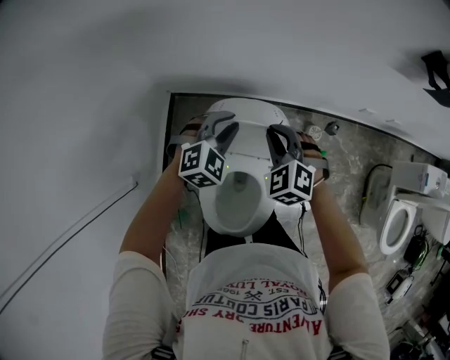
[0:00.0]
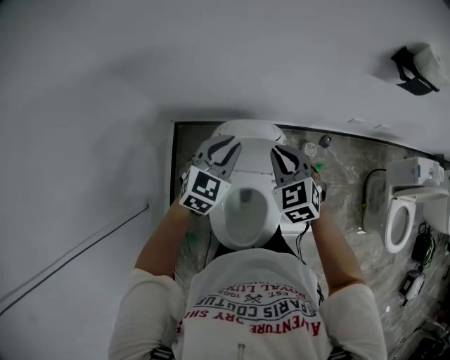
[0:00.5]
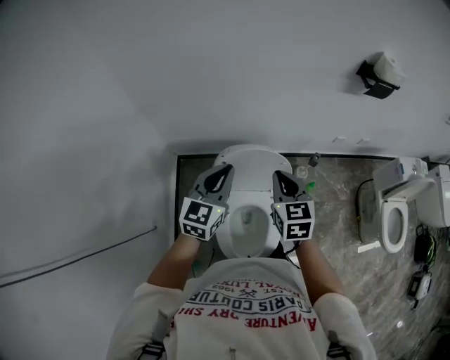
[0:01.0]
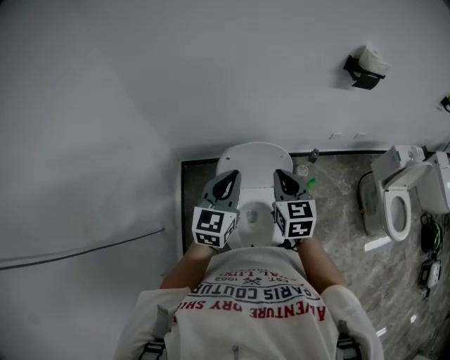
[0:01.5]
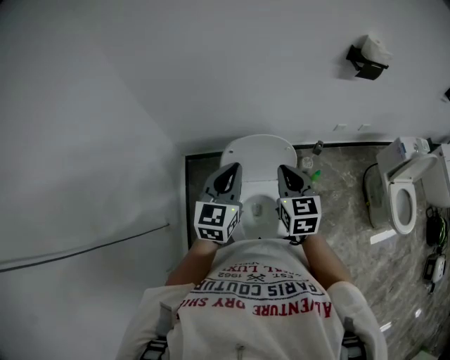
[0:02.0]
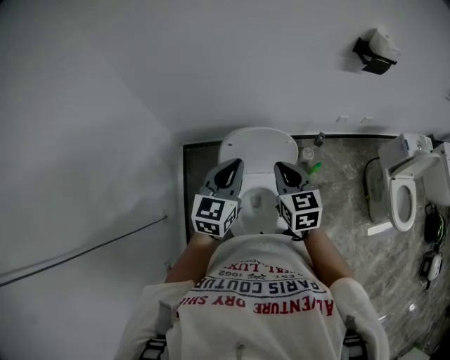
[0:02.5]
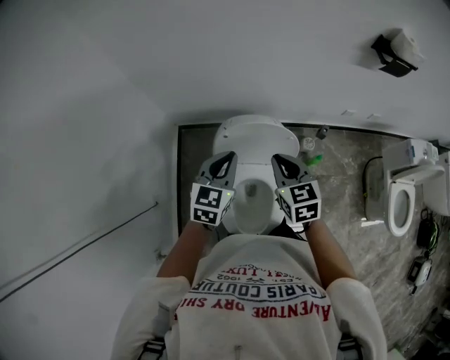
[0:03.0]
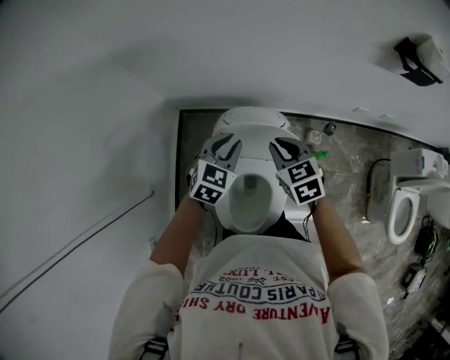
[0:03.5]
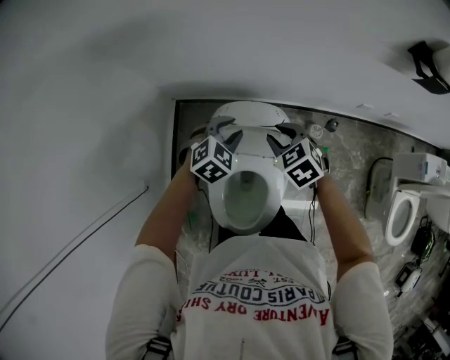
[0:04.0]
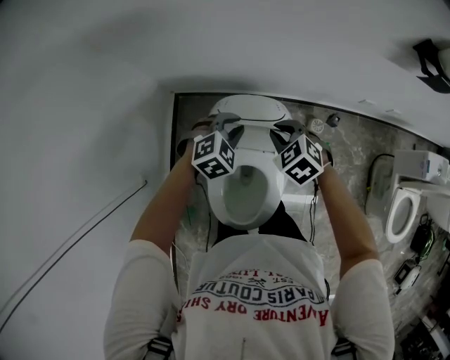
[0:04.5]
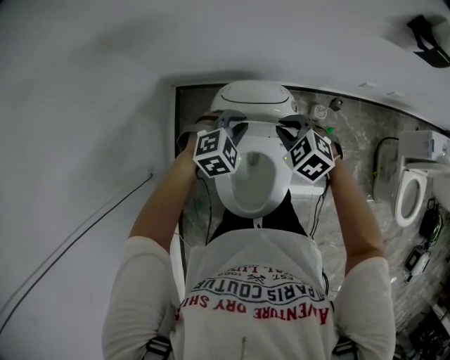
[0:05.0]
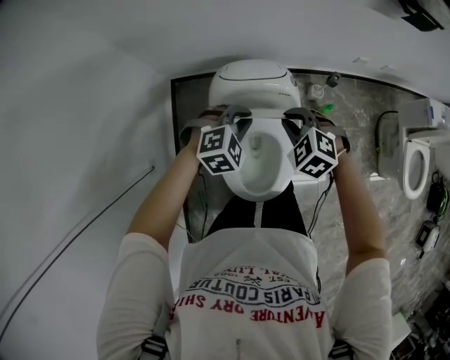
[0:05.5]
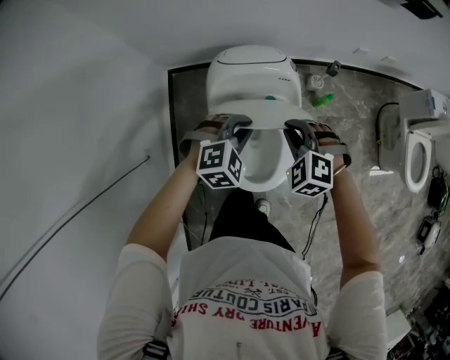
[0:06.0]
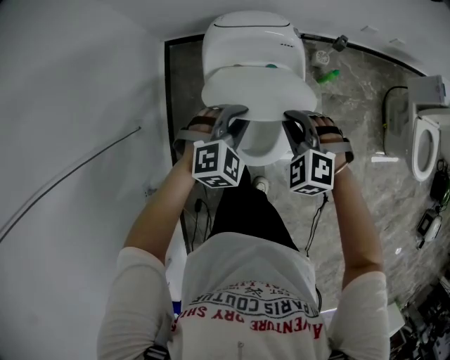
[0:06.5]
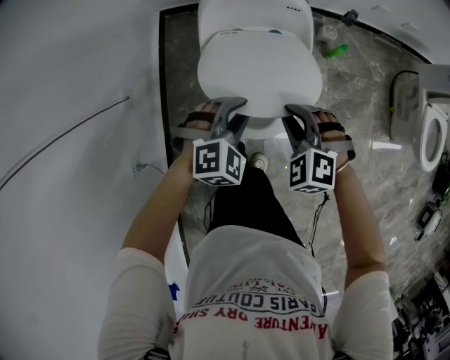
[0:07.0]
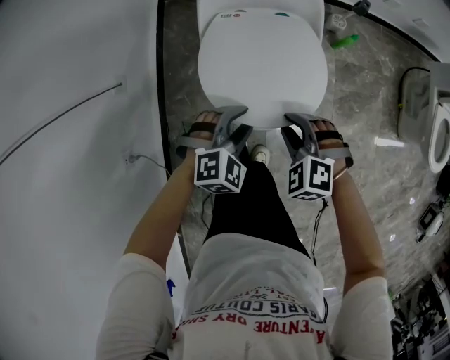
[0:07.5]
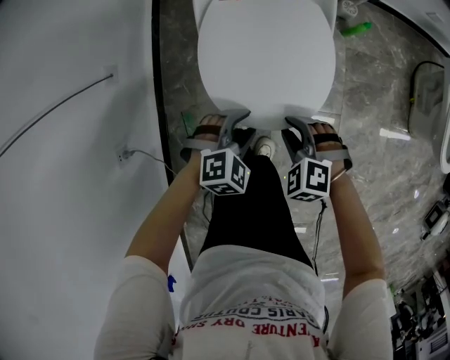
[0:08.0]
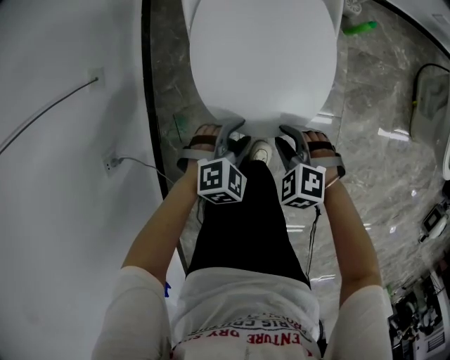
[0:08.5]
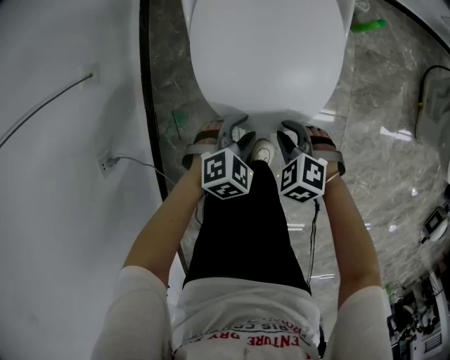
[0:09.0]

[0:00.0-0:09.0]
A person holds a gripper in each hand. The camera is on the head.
0:00.0 to 0:02.0: The right gripper moves backward and upward, roughly 25 cm, and twists about 50 degrees clockwise, seen from behind, while the left gripper shifts roughly 30 cm upward and backward, and tilts its fingers about 30 degrees upward.
0:02.0 to 0:04.5: The grippers both shift downward and forward by approximately 30 cm. The right gripper tilts its fingers some 30 degrees downward; the left gripper tips its fingers downward by approximately 40 degrees.
0:04.5 to 0:07.0: Both grippers travel together backward, roughly 35 cm. The right gripper turns by about 20 degrees.
0:07.0 to 0:09.0: The grippers both shift downward and backward by some 30 cm. The left gripper turns by approximately 30 degrees, and opens; the right gripper swivels roughly 20 degrees.

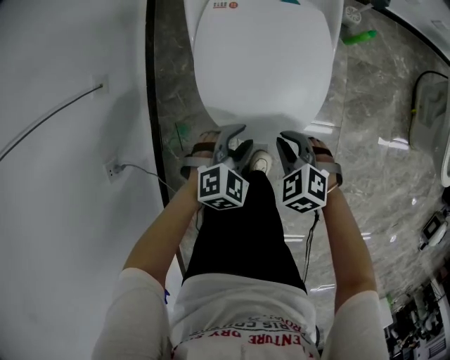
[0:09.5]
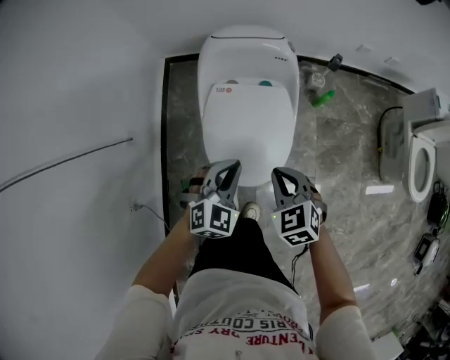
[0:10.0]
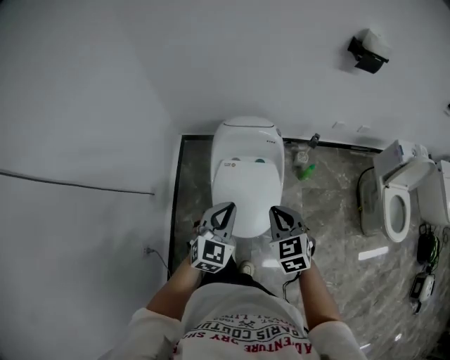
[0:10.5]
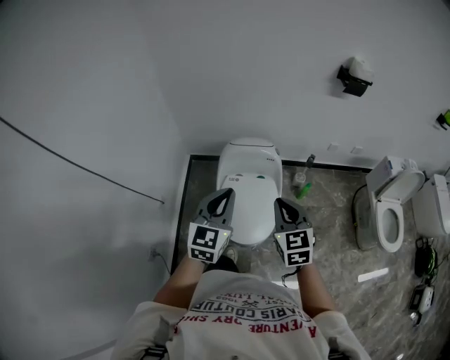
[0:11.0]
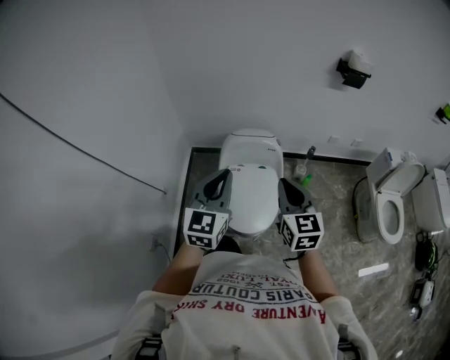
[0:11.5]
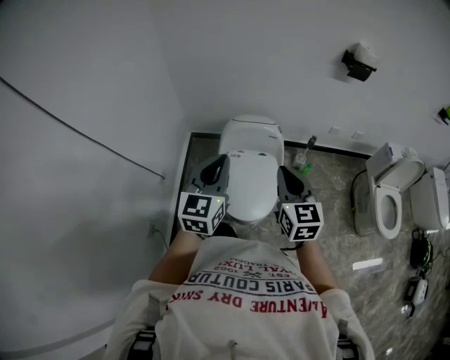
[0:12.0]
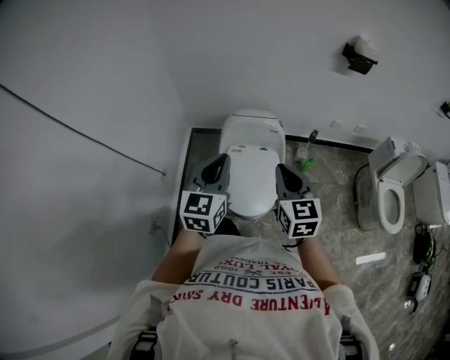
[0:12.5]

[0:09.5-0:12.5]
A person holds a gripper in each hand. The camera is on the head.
0:09.5 to 0:11.0: Both grippers move upward, roughly 60 cm. The left gripper tips its fingers upward by approximately 50 degrees, and closes; the right gripper tilts its fingers about 40 degrees upward.
0:11.0 to 0:12.5: The grippers move only a little.

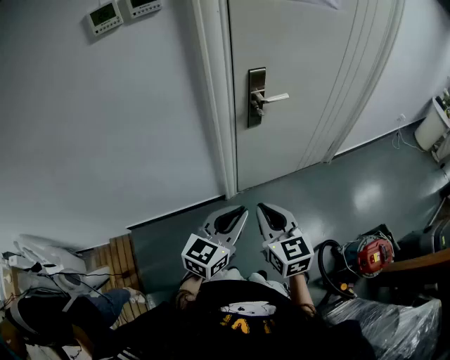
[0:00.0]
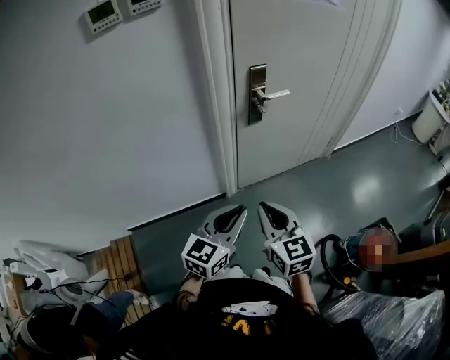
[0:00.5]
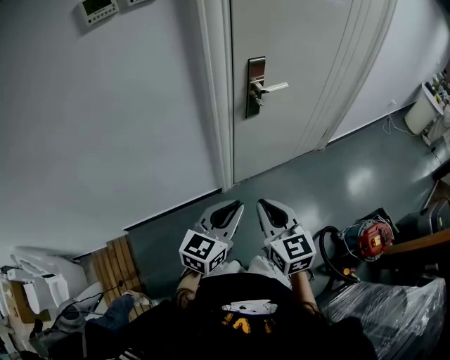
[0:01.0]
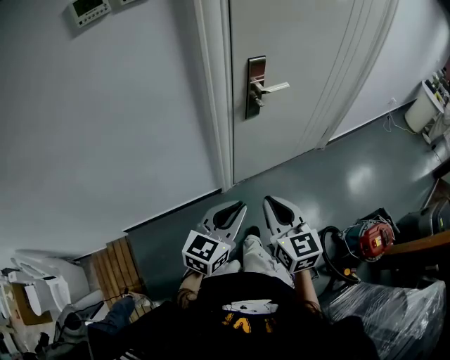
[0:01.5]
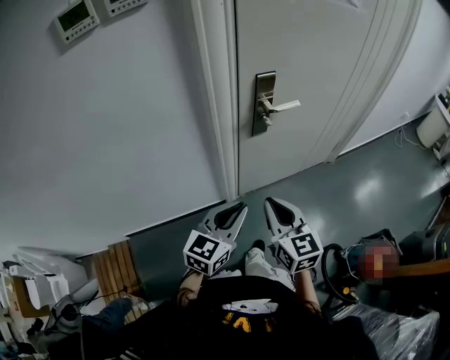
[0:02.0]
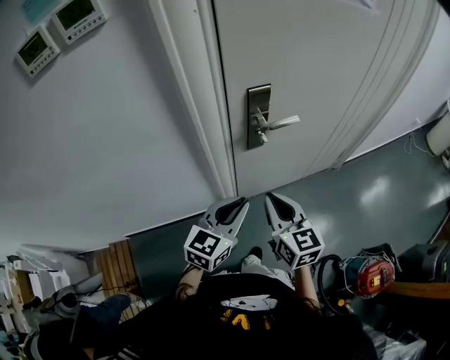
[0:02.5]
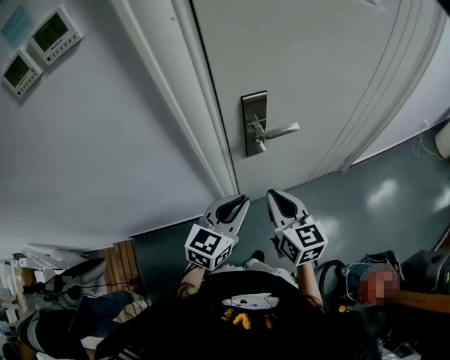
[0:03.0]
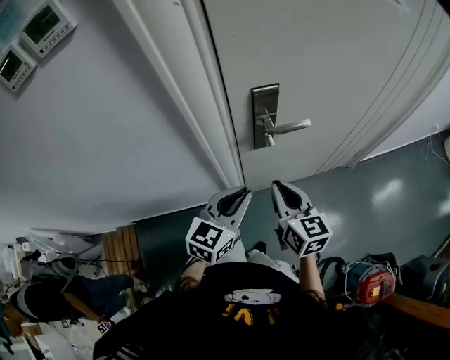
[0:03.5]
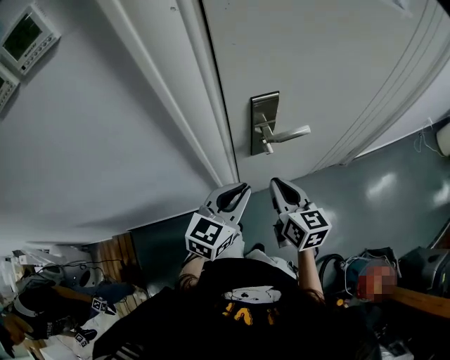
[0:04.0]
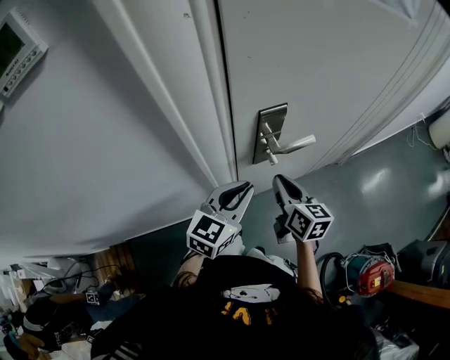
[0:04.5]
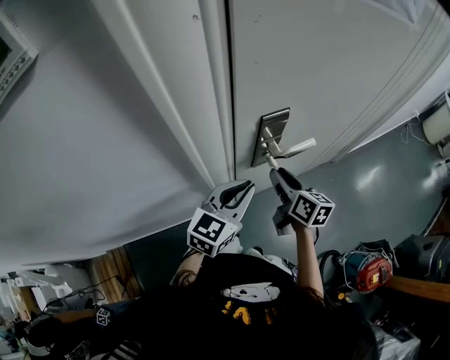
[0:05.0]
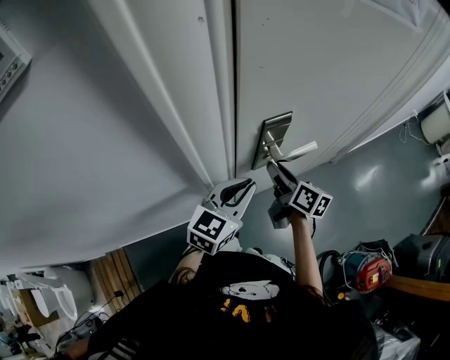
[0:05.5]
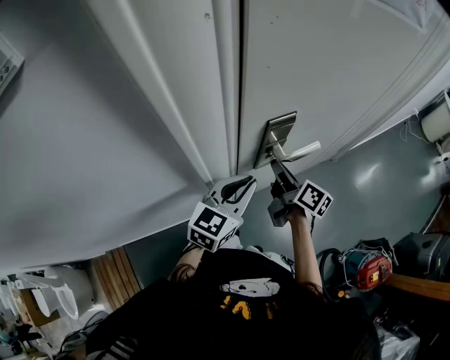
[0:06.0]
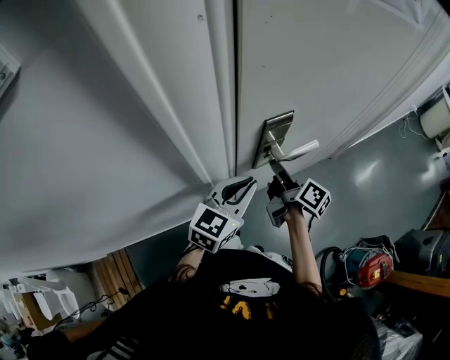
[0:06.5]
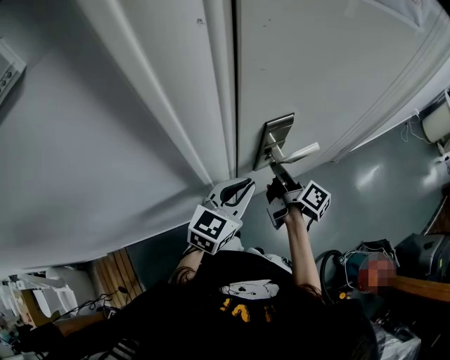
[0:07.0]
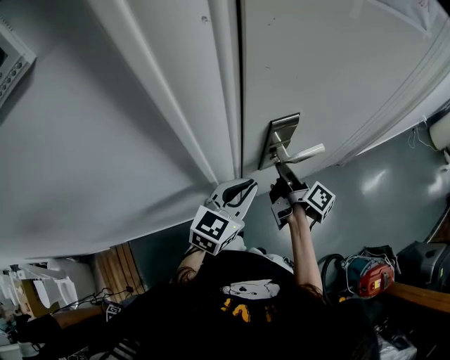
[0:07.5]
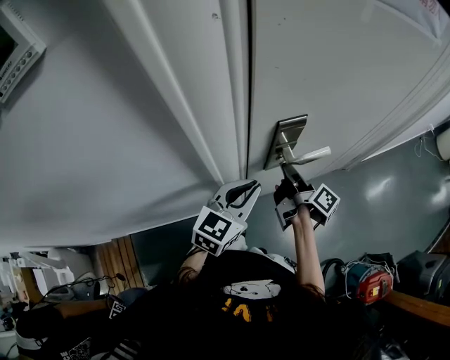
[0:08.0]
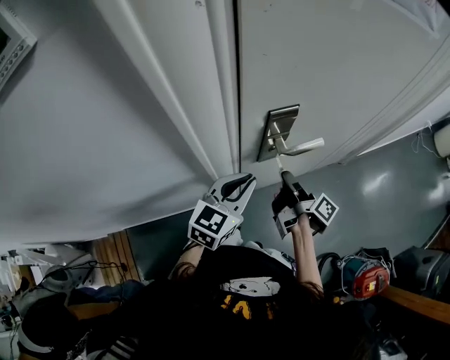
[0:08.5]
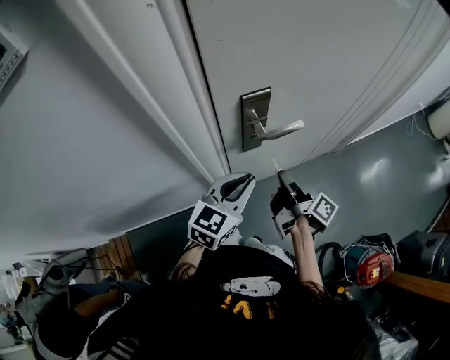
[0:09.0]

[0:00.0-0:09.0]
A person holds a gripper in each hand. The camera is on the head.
0:00.0 to 0:02.0: The two grippers go about 10 cm forward.
0:02.0 to 0:04.5: Both grippers move forward, some 25 cm. The right gripper turns by approximately 20 degrees.
0:04.5 to 0:07.0: The right gripper moves forward, approximately 5 cm, rotates around the line of its fingers by about 50 degrees, clockwise from behind, and opens, then closes again.
0:07.0 to 0:09.0: The left gripper travels to the right by some 5 cm; the right gripper travels backward and to the right by about 10 cm.

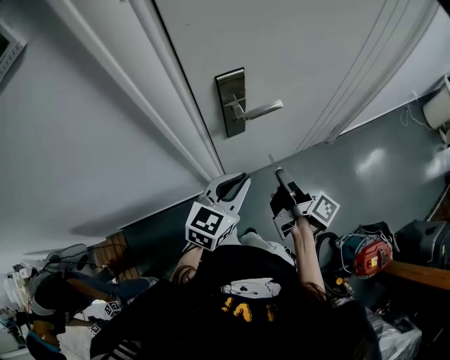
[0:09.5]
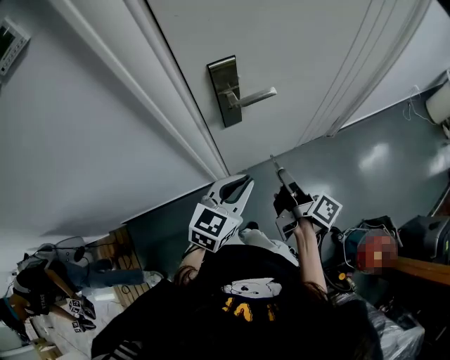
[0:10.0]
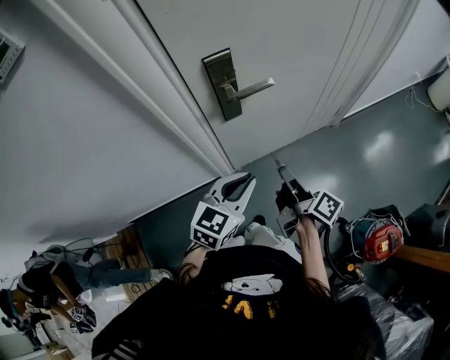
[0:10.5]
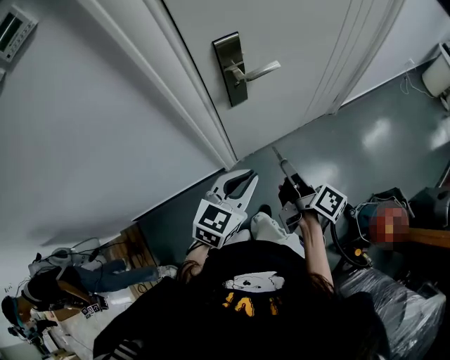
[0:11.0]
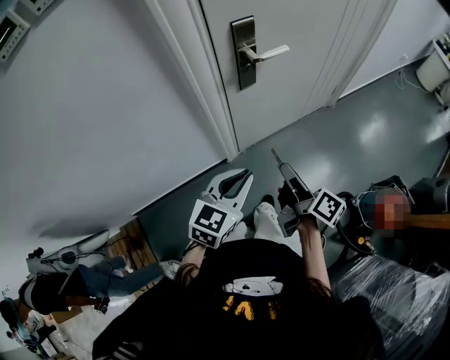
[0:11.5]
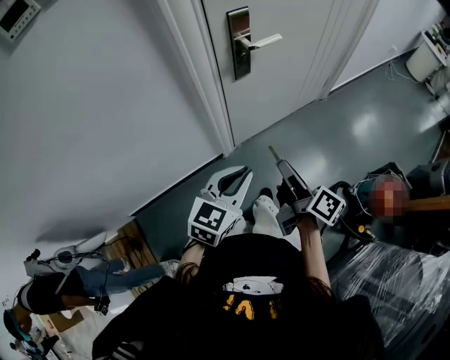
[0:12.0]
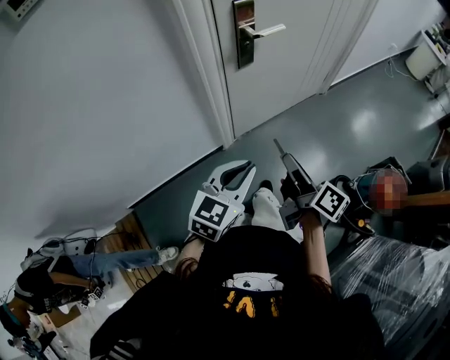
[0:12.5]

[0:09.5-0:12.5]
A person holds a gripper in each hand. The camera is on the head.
0:09.5 to 0:11.0: Both grippers move backward, some 10 cm.
0:11.0 to 0:12.5: The grippers both shift backward by some 15 cm.

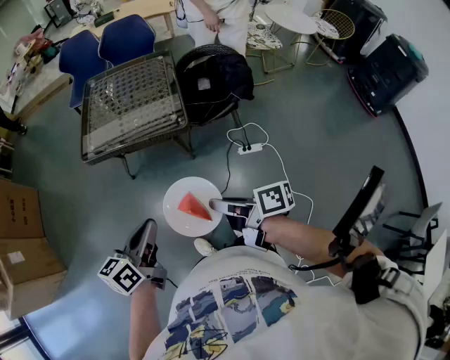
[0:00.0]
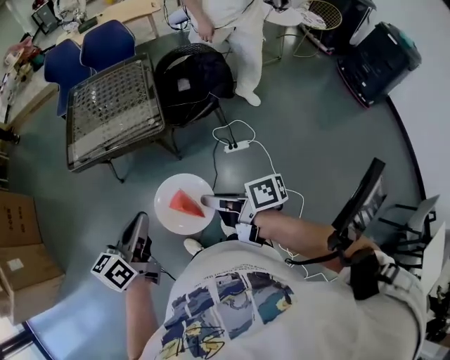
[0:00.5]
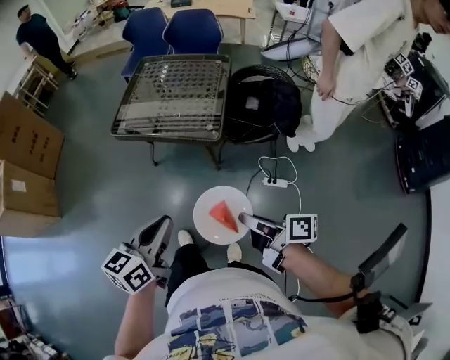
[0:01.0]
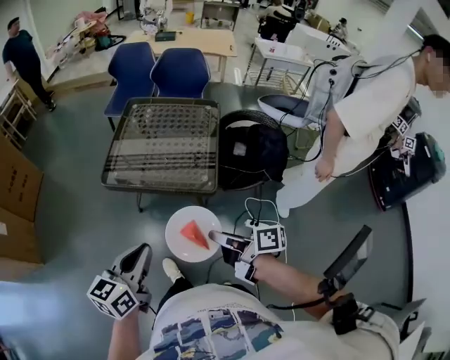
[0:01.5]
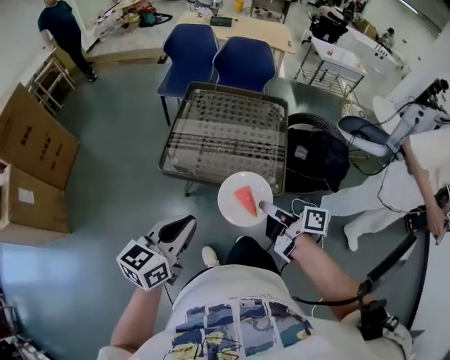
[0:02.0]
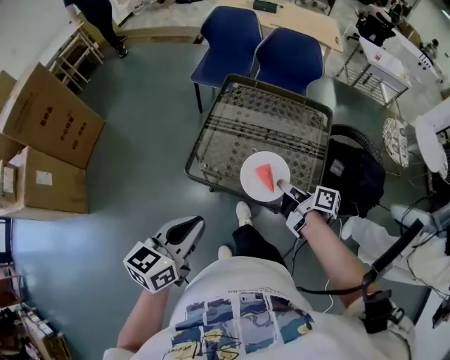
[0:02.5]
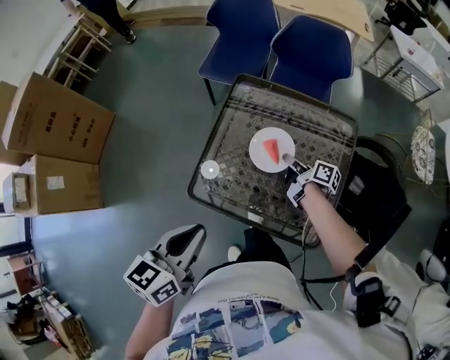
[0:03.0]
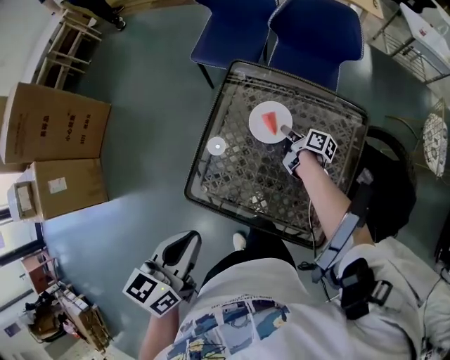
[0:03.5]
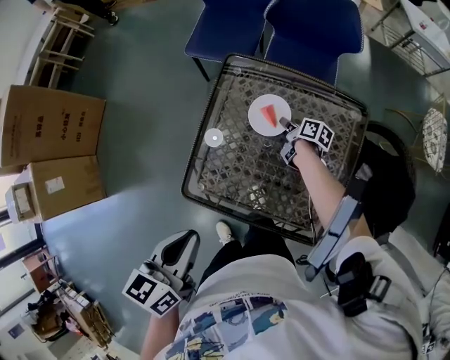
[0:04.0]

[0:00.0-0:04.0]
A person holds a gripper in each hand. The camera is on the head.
0:00.0 to 0:02.0: The left gripper is displaced forward and to the left by roughly 25 cm. Meanwhile the right gripper goes about 30 cm forward.
0:02.0 to 0:04.0: The right gripper moves forward and downward, roughly 60 cm, and rotates approximately 20 degrees. The left gripper shifts roughly 30 cm forward, and swivels some 30 degrees.
